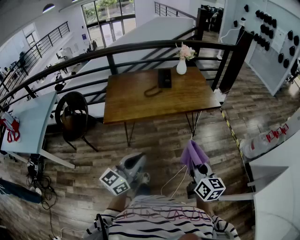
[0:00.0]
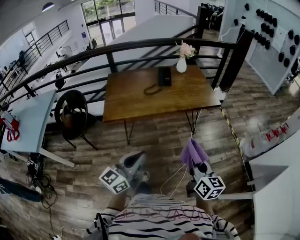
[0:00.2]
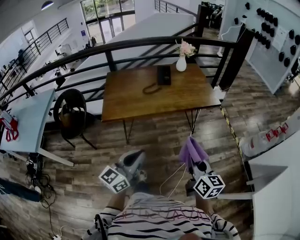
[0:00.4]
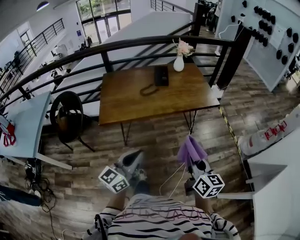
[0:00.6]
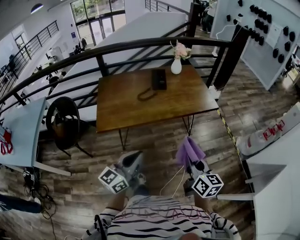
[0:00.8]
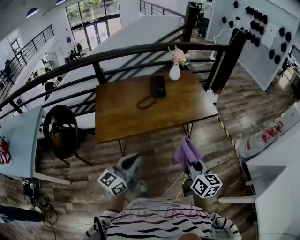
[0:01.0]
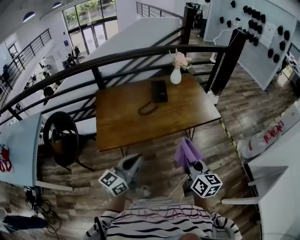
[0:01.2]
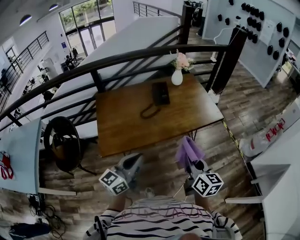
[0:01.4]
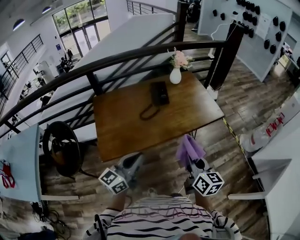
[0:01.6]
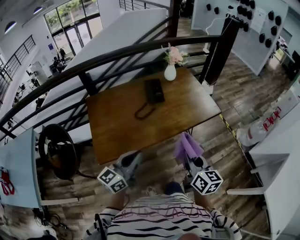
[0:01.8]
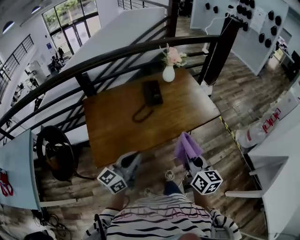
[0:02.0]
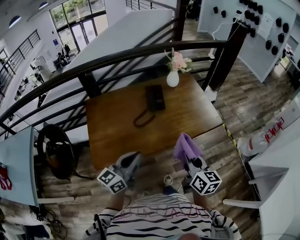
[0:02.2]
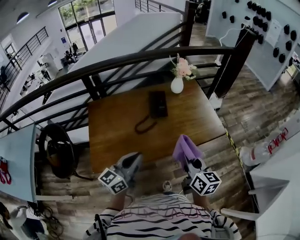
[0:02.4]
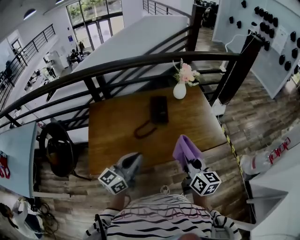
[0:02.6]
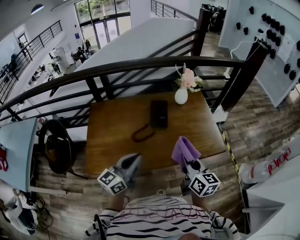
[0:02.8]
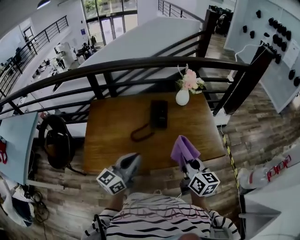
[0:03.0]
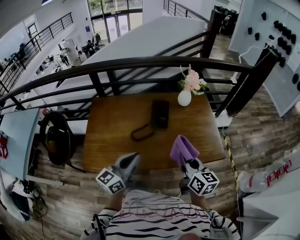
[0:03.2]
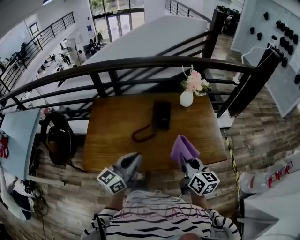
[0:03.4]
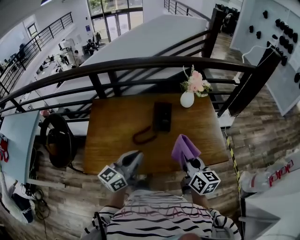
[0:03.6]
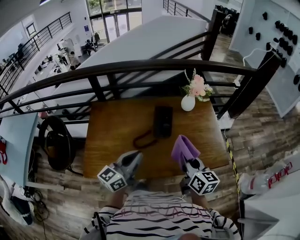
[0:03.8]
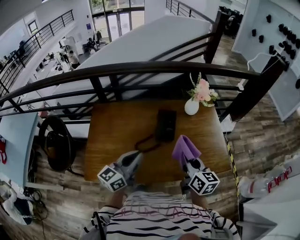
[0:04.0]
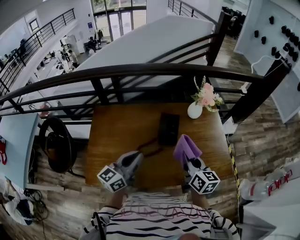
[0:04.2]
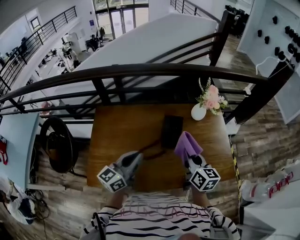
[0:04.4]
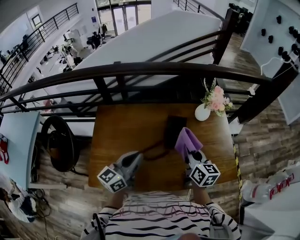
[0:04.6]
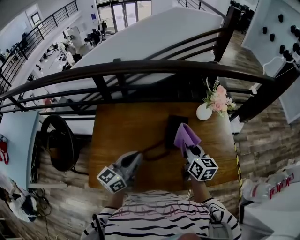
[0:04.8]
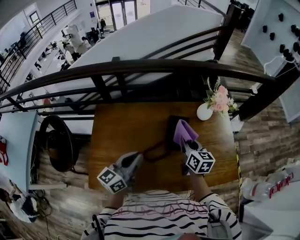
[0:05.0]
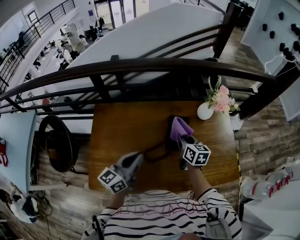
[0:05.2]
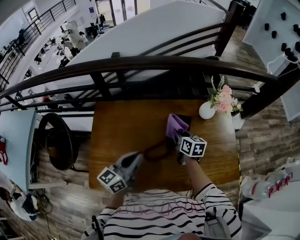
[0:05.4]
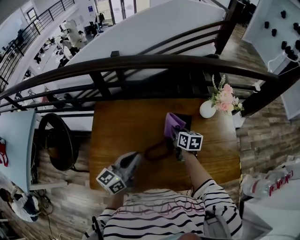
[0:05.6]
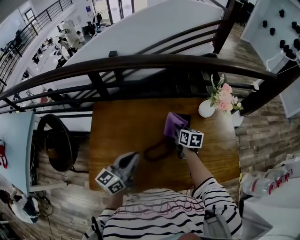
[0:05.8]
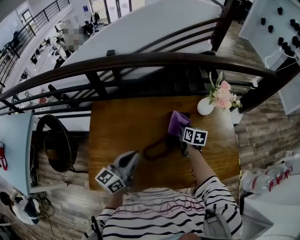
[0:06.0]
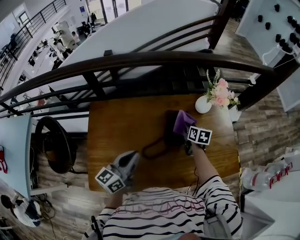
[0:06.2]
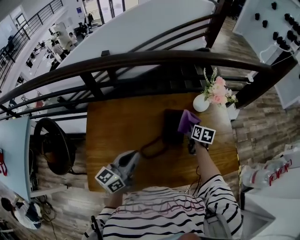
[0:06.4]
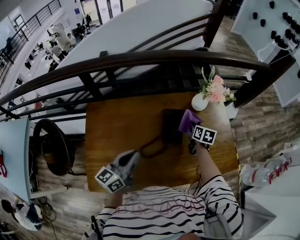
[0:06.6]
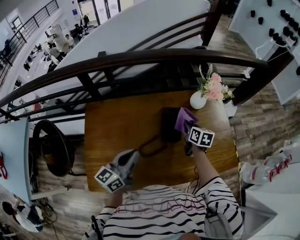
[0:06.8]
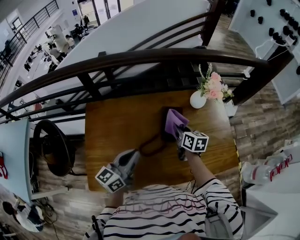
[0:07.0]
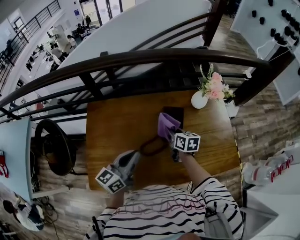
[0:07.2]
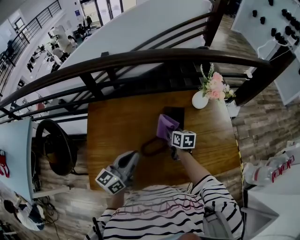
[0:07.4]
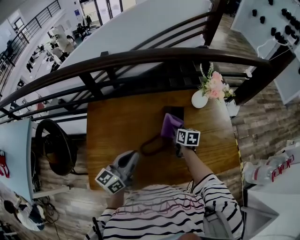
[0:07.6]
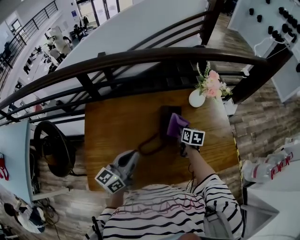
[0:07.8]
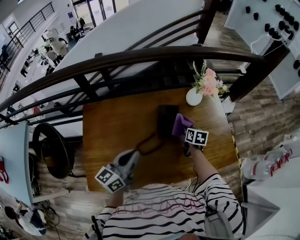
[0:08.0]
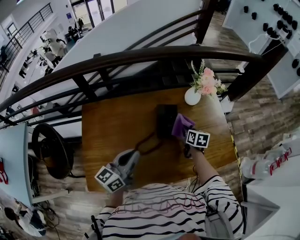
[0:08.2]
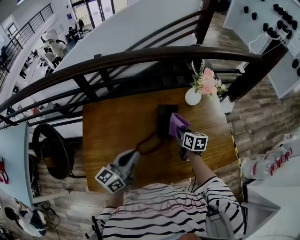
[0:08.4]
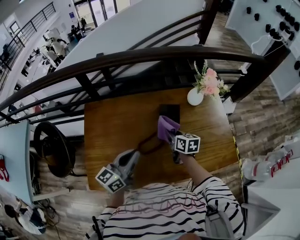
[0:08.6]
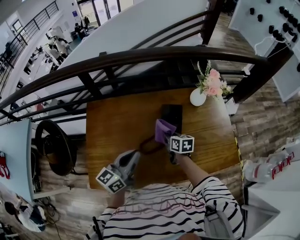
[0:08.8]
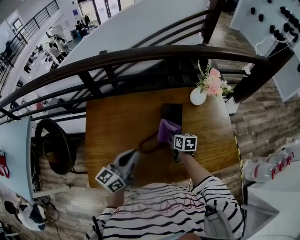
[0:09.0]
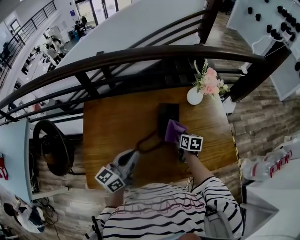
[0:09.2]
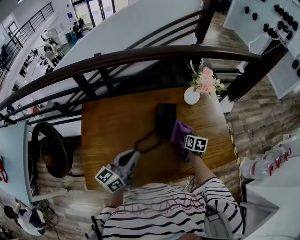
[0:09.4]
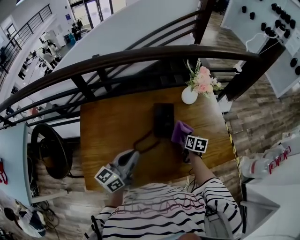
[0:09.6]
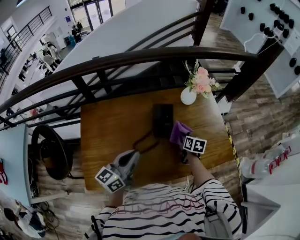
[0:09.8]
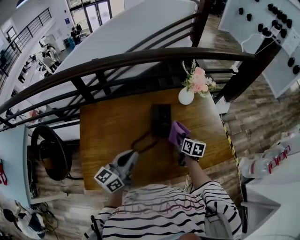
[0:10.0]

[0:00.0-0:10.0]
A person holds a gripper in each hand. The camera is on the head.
0:00.0 to 0:01.4: The two grippers go approximately 30 cm forward and to the left.
0:01.4 to 0:02.8: The grippers both shift forward by about 30 cm.
0:02.8 to 0:04.2: Both grippers move forward, roughly 15 cm.
0:04.2 to 0:05.8: The left gripper travels forward, to the left and downward by roughly 15 cm. Meanwhile the right gripper shifts roughly 30 cm forward, downward and to the left, and turns by some 20 degrees.
0:05.8 to 0:07.2: The right gripper travels backward by roughly 5 cm, and travels to the right and back again, some 15 cm each way.
0:07.2 to 0:08.6: The right gripper travels to the right and back again, approximately 15 cm each way.
0:08.6 to 0:10.0: The right gripper goes approximately 10 cm to the right.

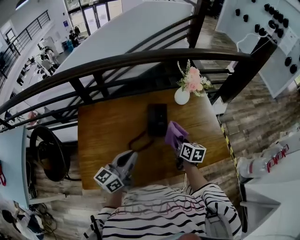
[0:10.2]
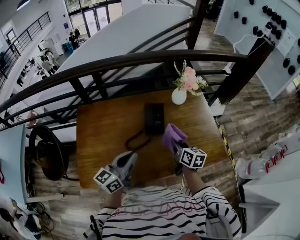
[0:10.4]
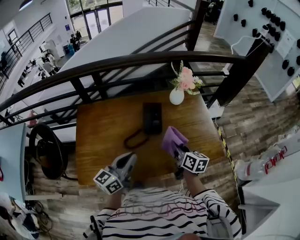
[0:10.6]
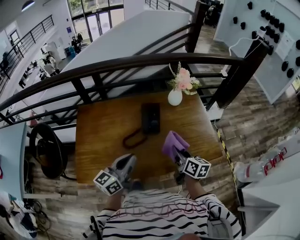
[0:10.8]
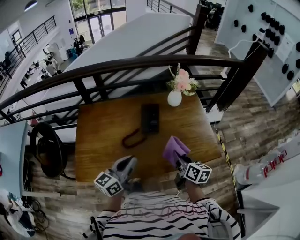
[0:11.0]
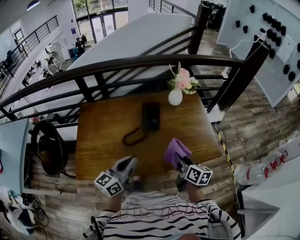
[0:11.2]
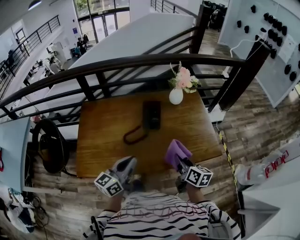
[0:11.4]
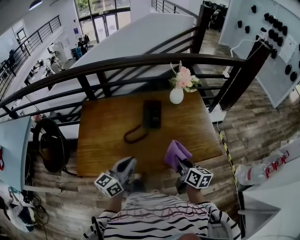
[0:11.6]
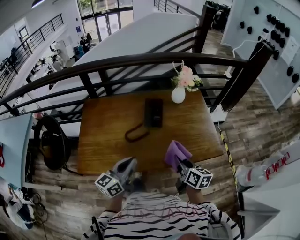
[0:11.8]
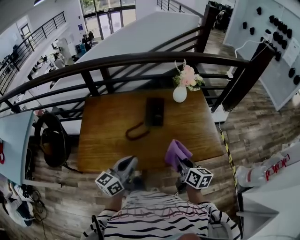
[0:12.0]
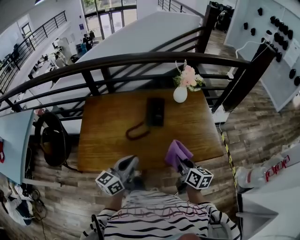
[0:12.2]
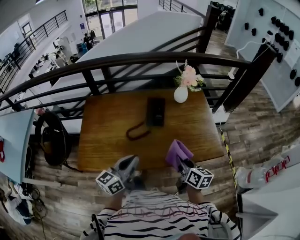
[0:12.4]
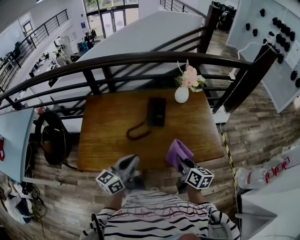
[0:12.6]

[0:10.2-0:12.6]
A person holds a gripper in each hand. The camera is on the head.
0:10.2 to 0:11.4: The grippers both shift backward and to the right by approximately 20 cm.
0:11.4 to 0:12.6: There are only small adjustments of the grippers.

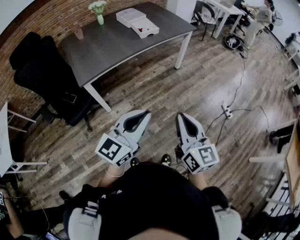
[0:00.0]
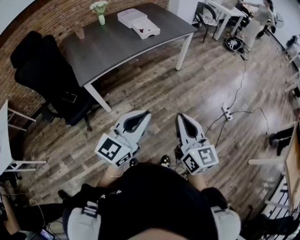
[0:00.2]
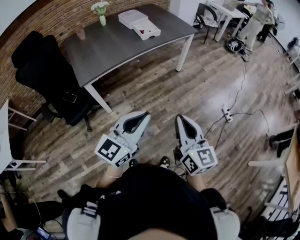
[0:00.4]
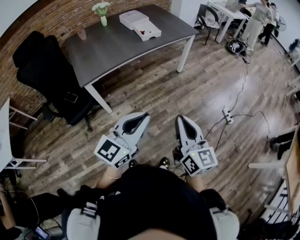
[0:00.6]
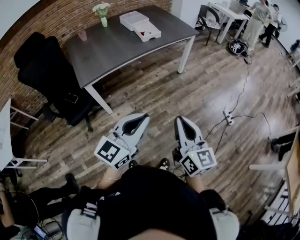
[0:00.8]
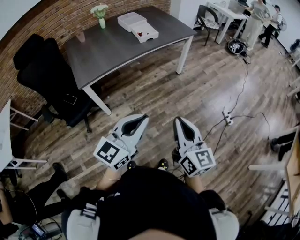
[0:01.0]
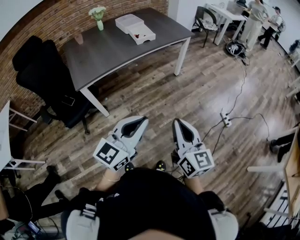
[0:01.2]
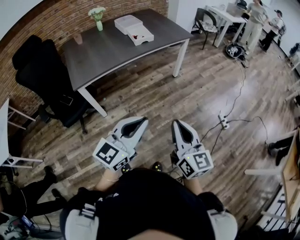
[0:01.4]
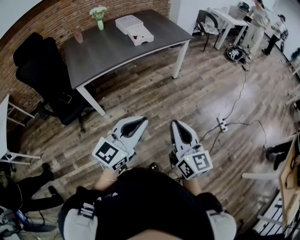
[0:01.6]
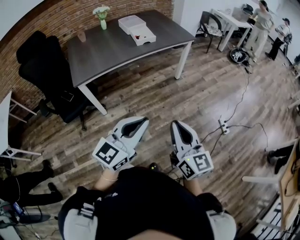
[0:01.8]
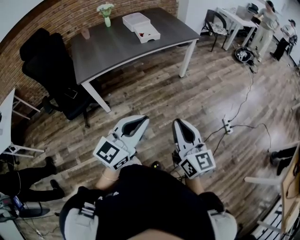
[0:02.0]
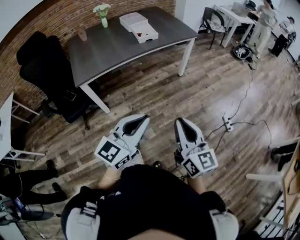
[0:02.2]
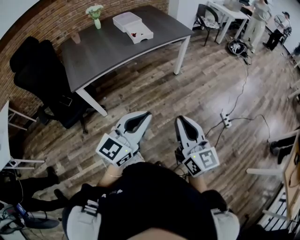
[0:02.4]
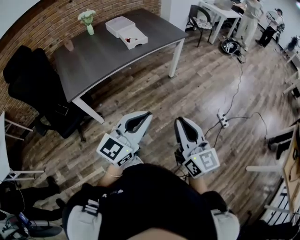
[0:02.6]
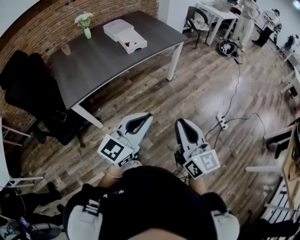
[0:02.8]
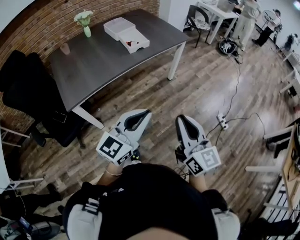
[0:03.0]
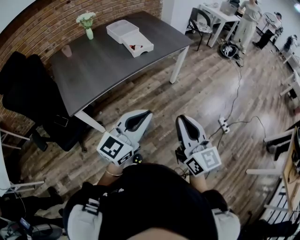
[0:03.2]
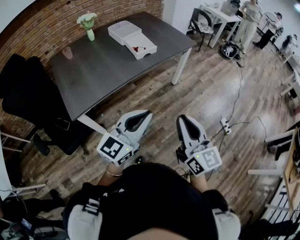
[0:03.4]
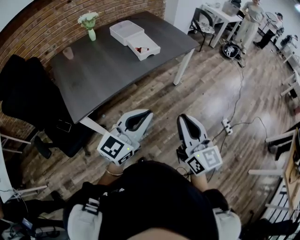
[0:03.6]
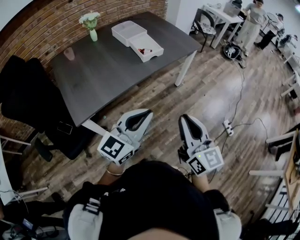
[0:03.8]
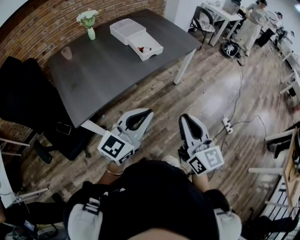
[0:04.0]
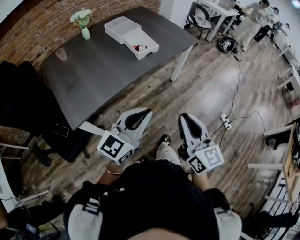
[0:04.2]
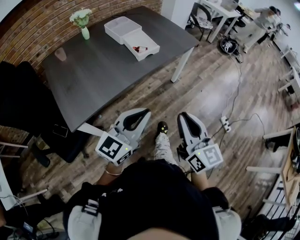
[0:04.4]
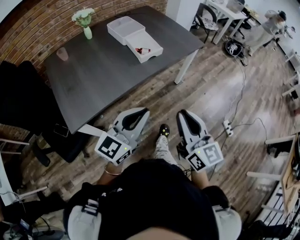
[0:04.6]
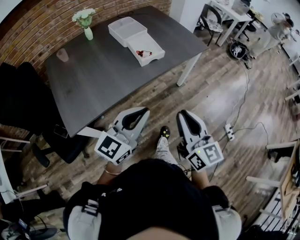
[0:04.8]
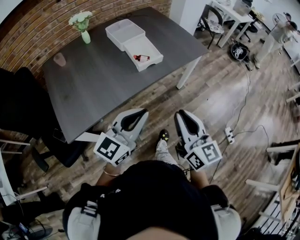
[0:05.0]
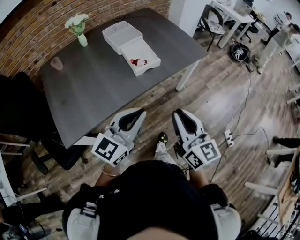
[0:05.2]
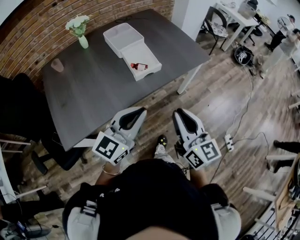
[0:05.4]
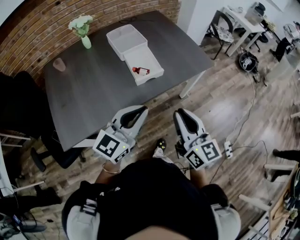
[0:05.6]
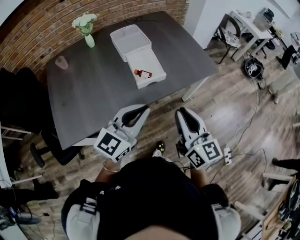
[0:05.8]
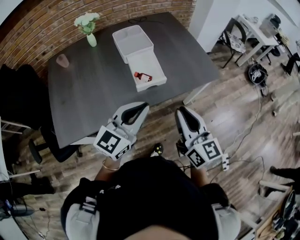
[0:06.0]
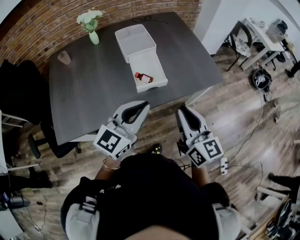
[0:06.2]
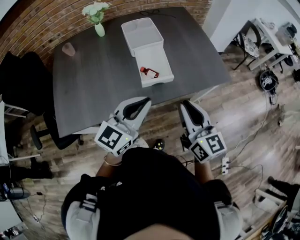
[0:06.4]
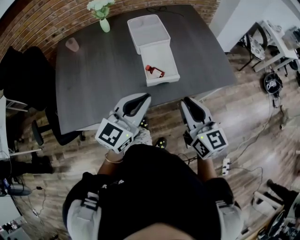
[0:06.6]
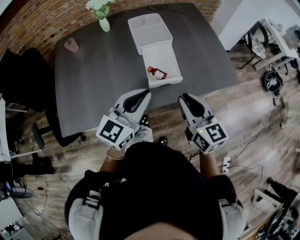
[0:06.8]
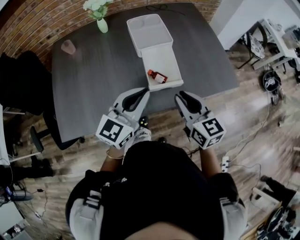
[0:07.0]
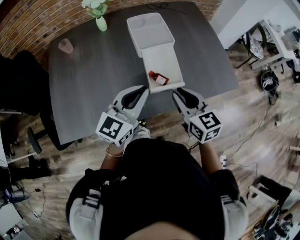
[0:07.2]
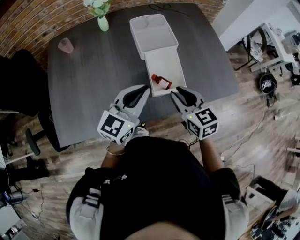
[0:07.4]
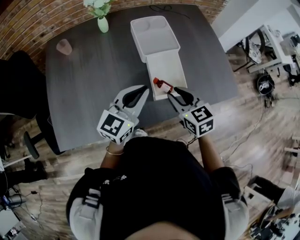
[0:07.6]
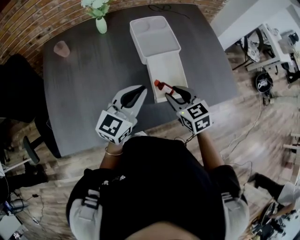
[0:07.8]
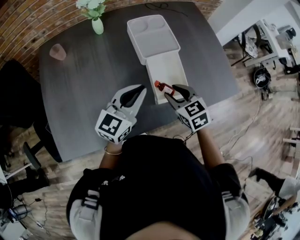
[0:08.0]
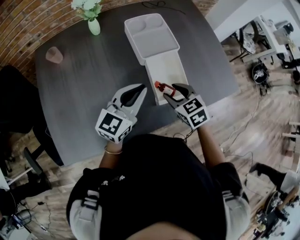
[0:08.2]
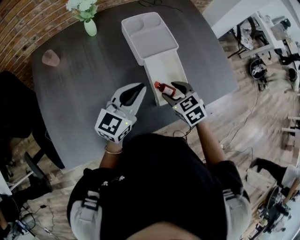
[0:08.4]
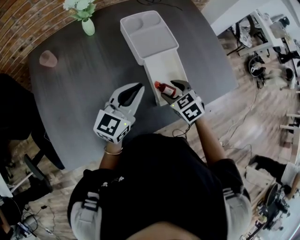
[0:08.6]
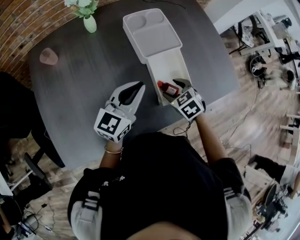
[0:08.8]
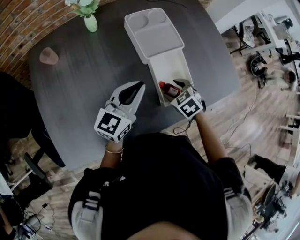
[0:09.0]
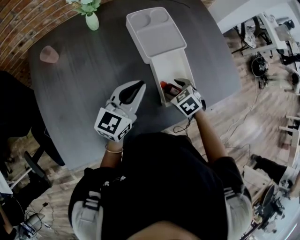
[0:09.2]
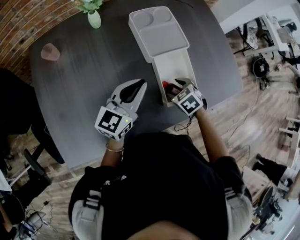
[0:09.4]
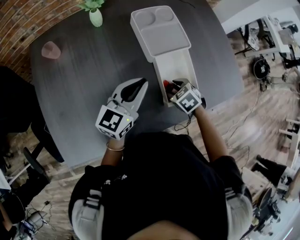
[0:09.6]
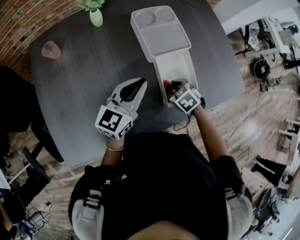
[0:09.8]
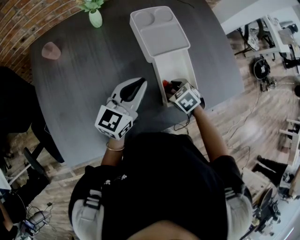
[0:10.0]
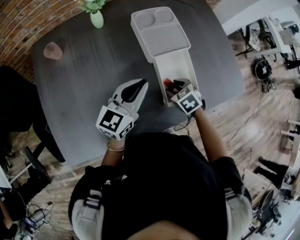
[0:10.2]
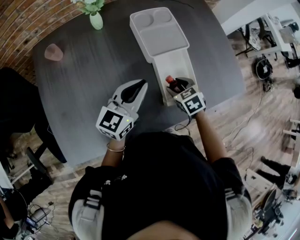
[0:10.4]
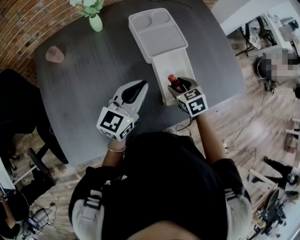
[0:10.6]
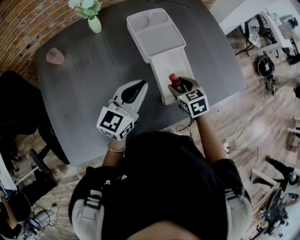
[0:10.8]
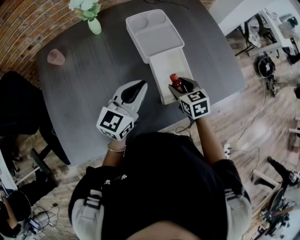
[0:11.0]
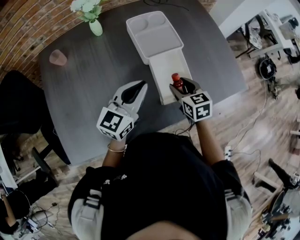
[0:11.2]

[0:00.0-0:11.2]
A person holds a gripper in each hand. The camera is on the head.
0:00.0 to 0:01.6: The two grippers go approximately 10 cm to the right.
0:01.6 to 0:03.2: Both grippers travel together forward and to the left, approximately 20 cm.
0:03.2 to 0:04.8: The two grippers go about 20 cm forward and to the left.
0:04.8 to 0:06.4: Both grippers move forward, about 30 cm.
0:06.4 to 0:08.0: Both grippers travel together forward, to the left and downward, approximately 30 cm. The right gripper tilts its fingers roughly 40 degrees downward.
0:08.0 to 0:09.6: The right gripper travels downward by about 15 cm, and rotates some 30 degrees, while the left gripper moves forward, roughly 5 cm.
0:09.6 to 0:11.2: The left gripper moves approximately 5 cm; the right gripper is displaced upward by about 10 cm, and tilts its fingers about 30 degrees upward.
